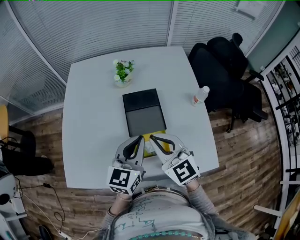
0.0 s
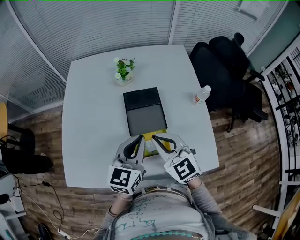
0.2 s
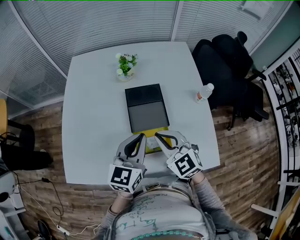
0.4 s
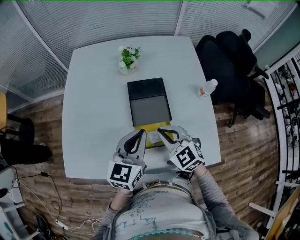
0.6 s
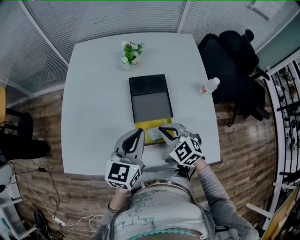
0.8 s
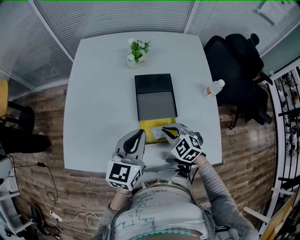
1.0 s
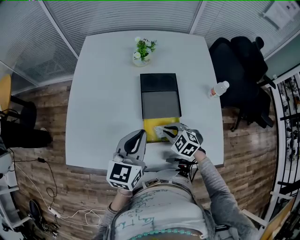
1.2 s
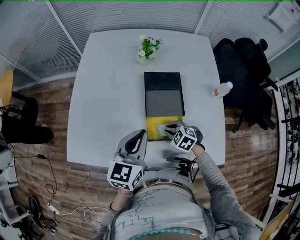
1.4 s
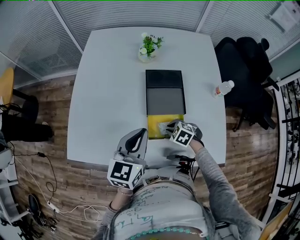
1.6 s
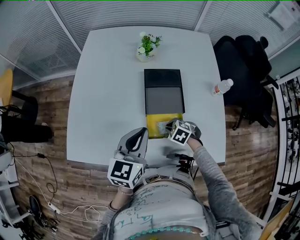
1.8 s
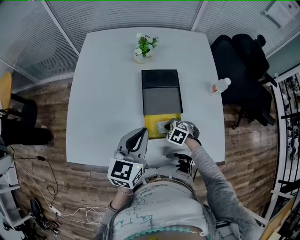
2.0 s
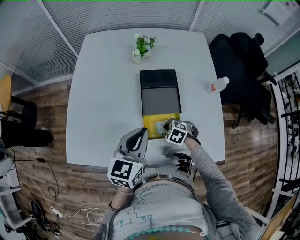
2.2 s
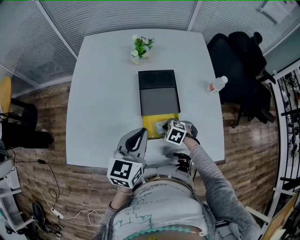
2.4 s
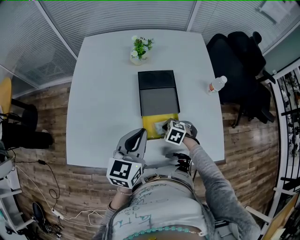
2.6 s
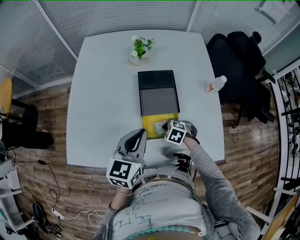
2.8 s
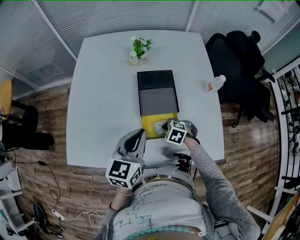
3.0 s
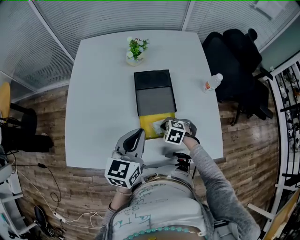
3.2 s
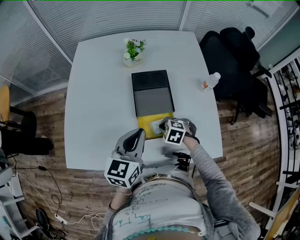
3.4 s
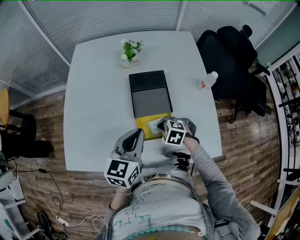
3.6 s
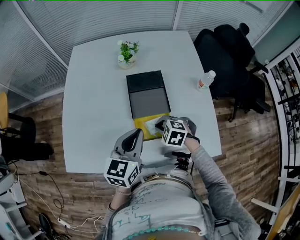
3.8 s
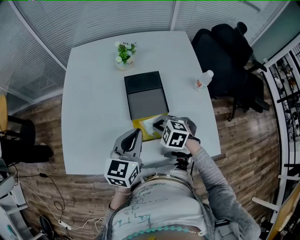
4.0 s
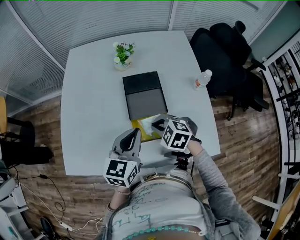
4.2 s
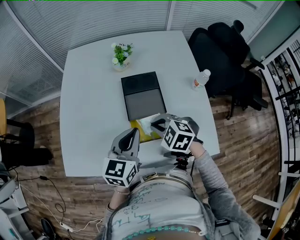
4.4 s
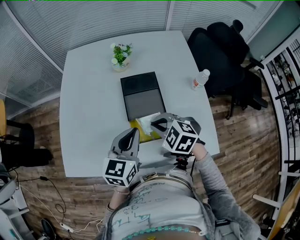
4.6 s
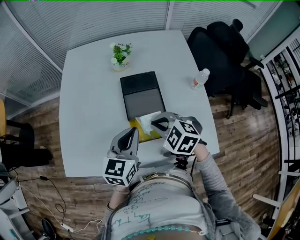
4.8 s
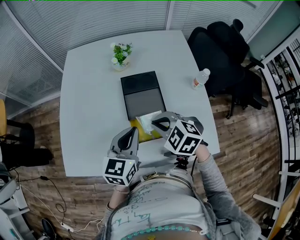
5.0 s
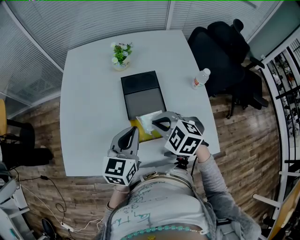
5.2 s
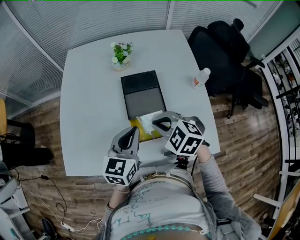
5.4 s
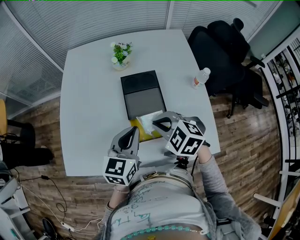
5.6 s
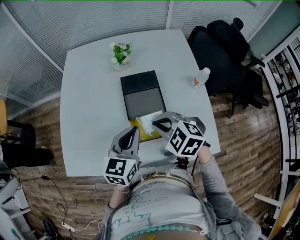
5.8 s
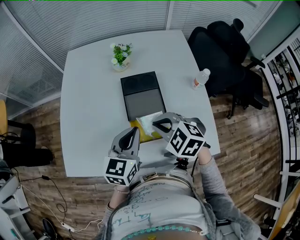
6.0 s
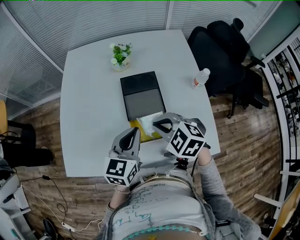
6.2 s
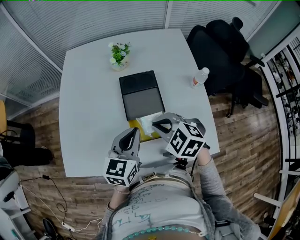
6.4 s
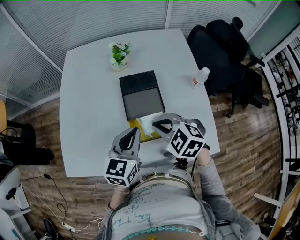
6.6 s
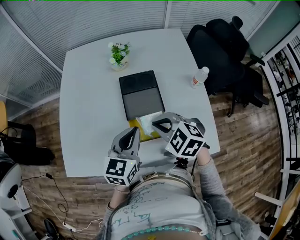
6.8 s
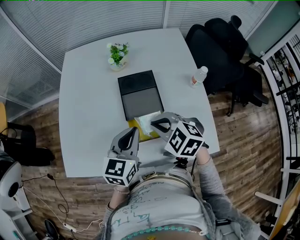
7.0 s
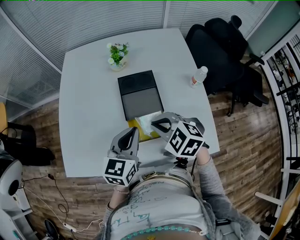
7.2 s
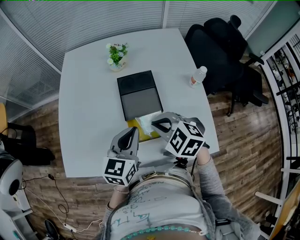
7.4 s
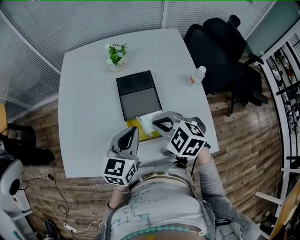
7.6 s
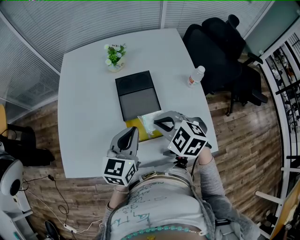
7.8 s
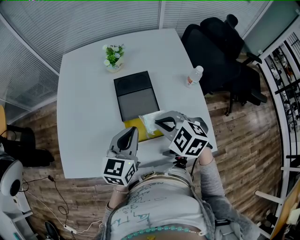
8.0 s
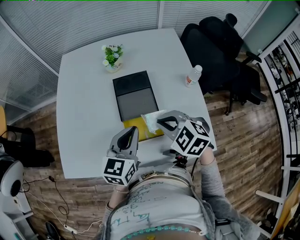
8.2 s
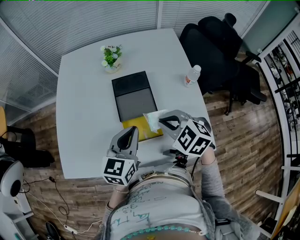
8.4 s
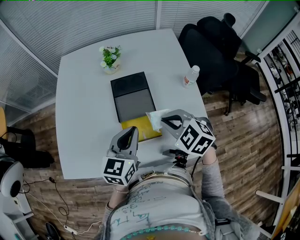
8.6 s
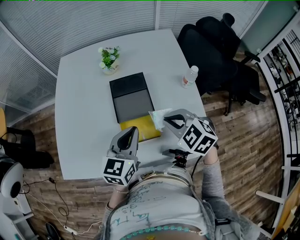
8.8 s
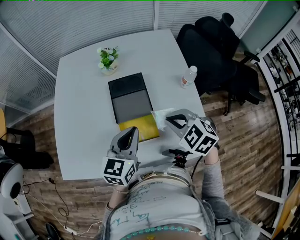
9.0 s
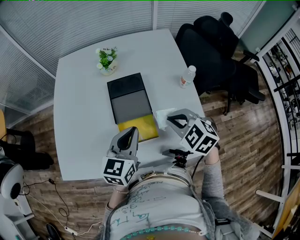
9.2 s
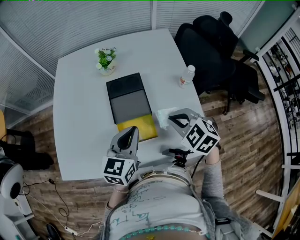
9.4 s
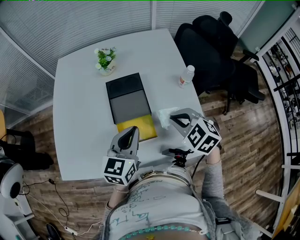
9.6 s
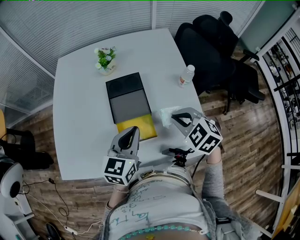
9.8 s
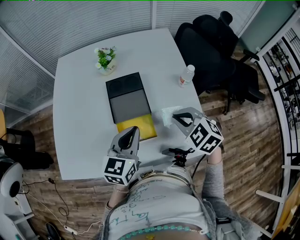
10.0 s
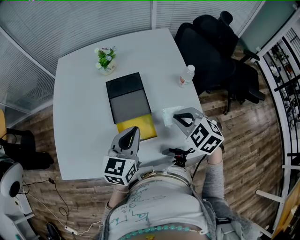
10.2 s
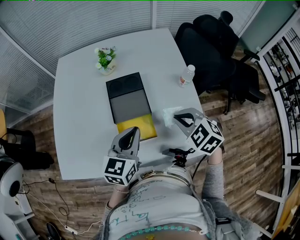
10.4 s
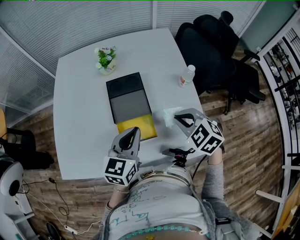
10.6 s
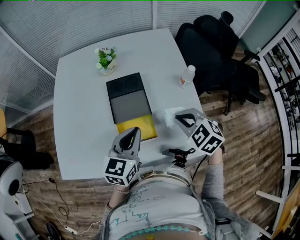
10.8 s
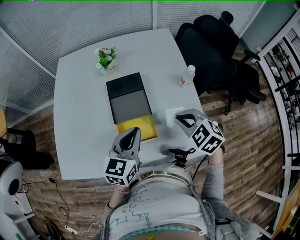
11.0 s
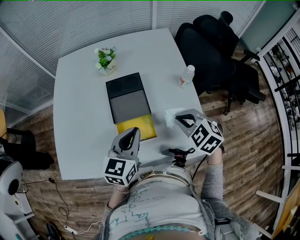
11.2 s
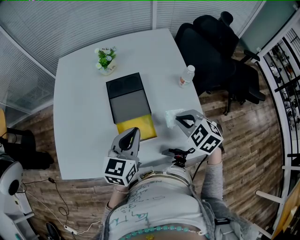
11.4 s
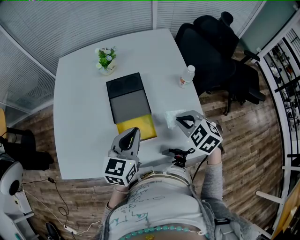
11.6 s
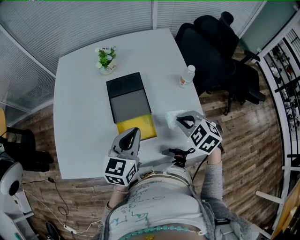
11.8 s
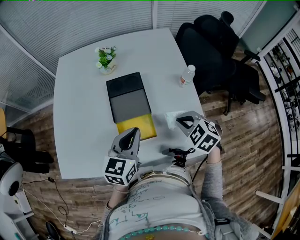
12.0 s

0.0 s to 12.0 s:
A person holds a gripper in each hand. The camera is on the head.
0.0 to 1.6 s: The right gripper is displaced downward by some 30 cm, and tips its fingers downward by approximately 50 degrees. The left gripper goes roughly 10 cm to the left.
1.6 to 3.0 s: The grippers stay close to where they were, moving slightly.
3.0 to 4.4 s: The right gripper goes roughly 15 cm upward.
4.4 to 6.0 s: The right gripper is displaced upward by about 5 cm.
6.0 to 7.6 s: The grippers move only a little.
7.6 to 9.0 s: The right gripper shifts some 10 cm to the right.
9.0 to 10.4 s: The grippers stay close to where they were, moving slightly.
10.4 to 12.0 s: The grippers make only small movements.

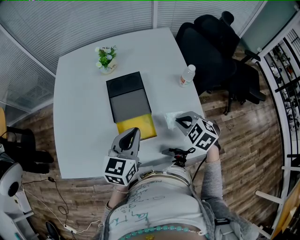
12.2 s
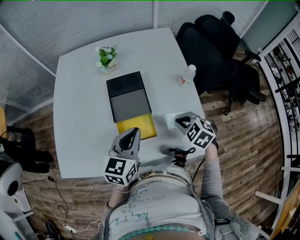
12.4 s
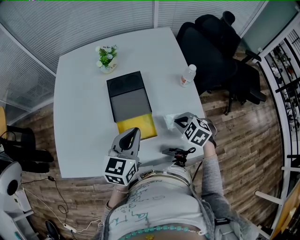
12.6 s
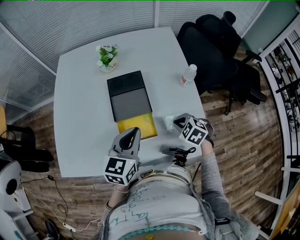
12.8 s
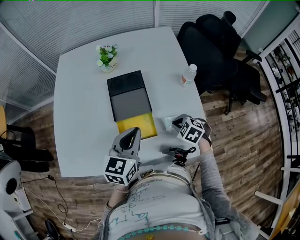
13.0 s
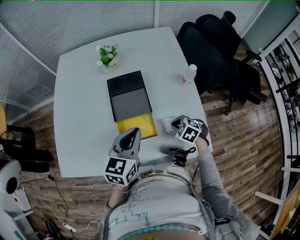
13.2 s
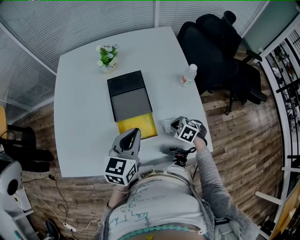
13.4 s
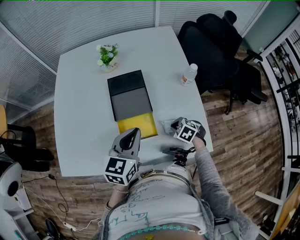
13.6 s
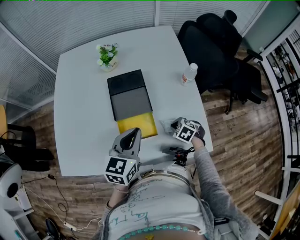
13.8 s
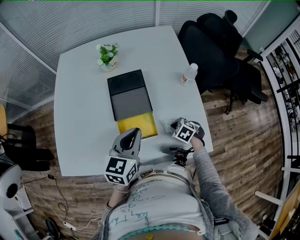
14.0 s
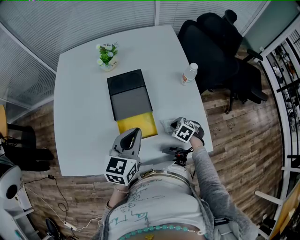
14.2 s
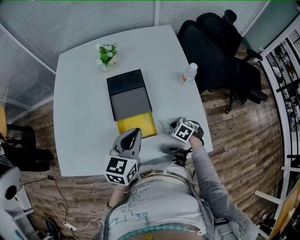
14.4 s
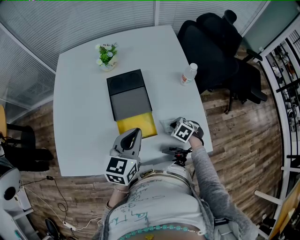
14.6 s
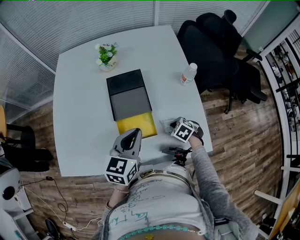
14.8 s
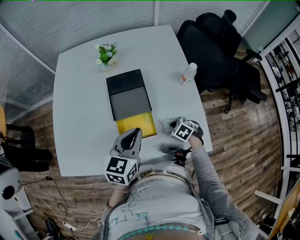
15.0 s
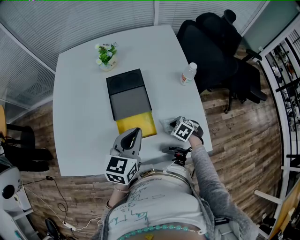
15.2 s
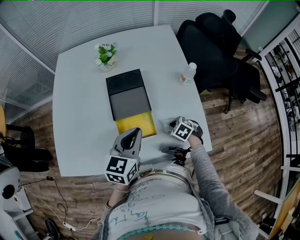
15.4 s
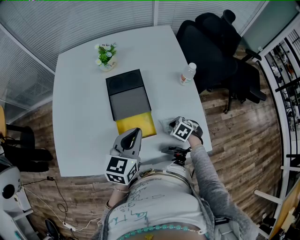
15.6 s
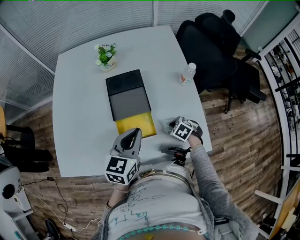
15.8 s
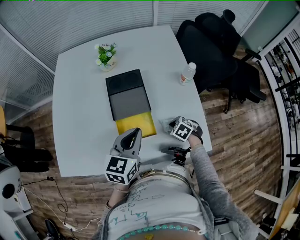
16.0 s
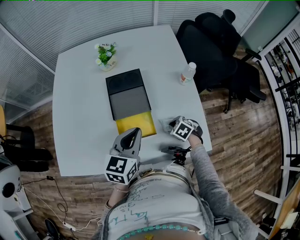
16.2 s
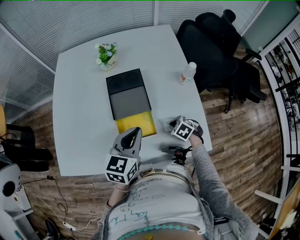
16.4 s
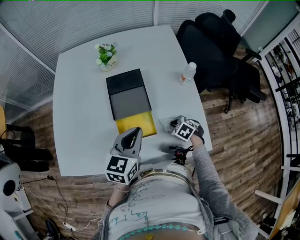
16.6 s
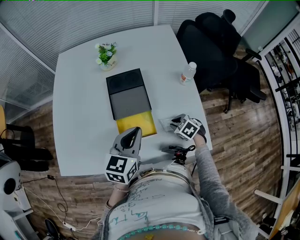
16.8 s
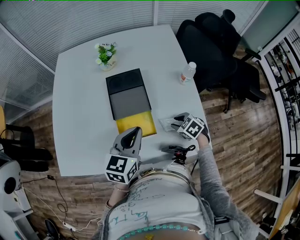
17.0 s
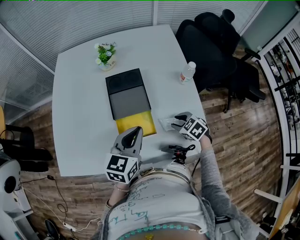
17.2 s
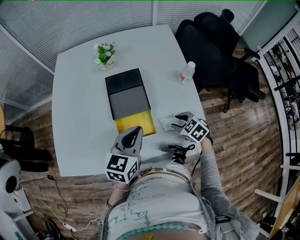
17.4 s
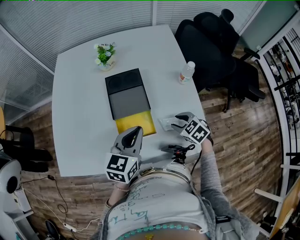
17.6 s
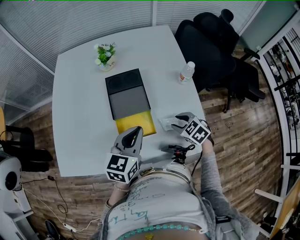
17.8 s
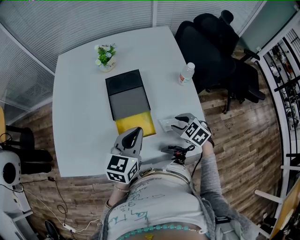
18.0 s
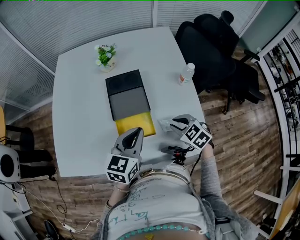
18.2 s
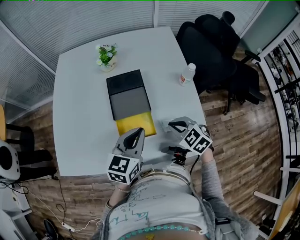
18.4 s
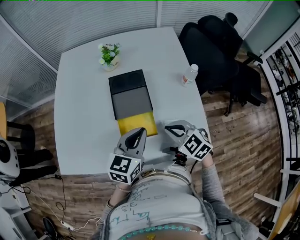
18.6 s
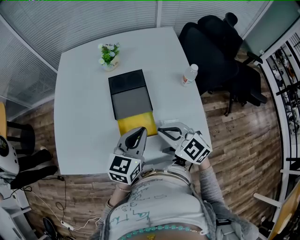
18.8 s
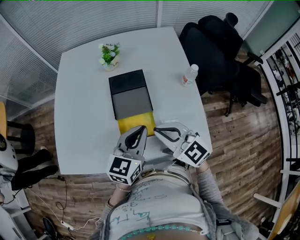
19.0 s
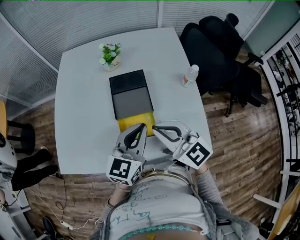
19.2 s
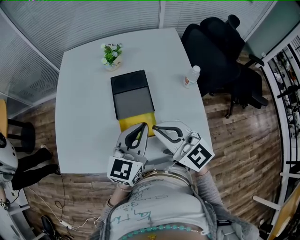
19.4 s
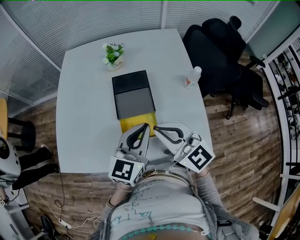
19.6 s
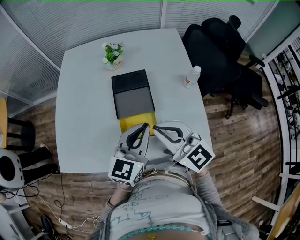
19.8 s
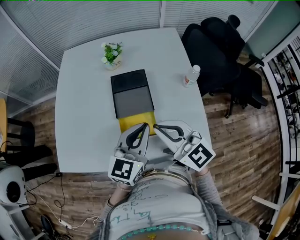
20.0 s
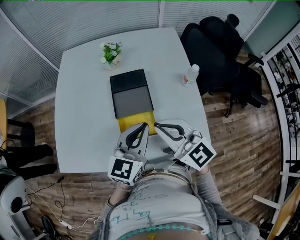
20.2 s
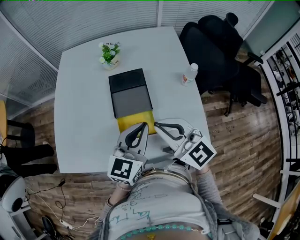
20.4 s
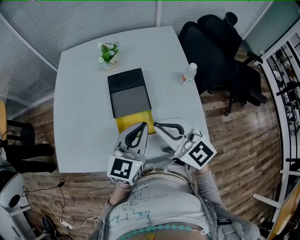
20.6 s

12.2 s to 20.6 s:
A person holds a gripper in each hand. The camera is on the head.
12.2 to 13.6 s: The right gripper shifts about 15 cm downward.
13.6 to 15.0 s: The grippers stay close to where they were, moving slightly.
15.0 to 16.4 s: The two grippers keep their place.
16.4 to 17.8 s: The right gripper is displaced upward by roughly 10 cm, and opens its fingers.
17.8 to 19.2 s: The right gripper shifts roughly 25 cm upward and to the left, tilts its fingers roughly 50 degrees upward, and closes up.
19.2 to 20.6 s: The grippers stay close to where they were, moving slightly.

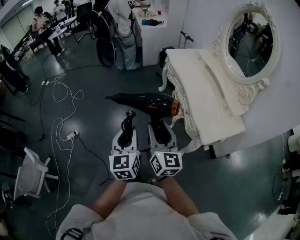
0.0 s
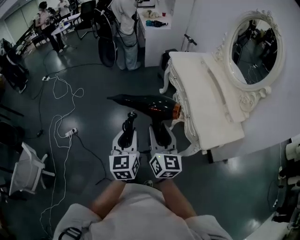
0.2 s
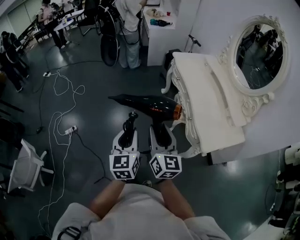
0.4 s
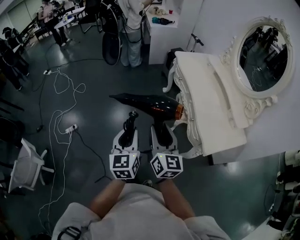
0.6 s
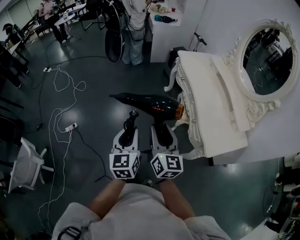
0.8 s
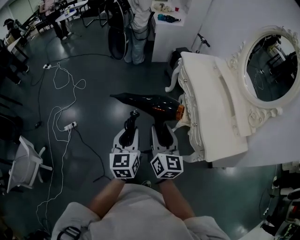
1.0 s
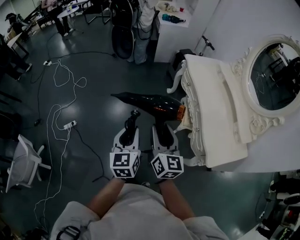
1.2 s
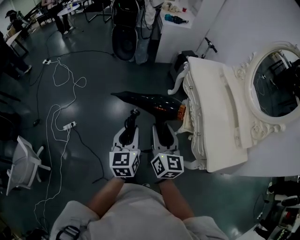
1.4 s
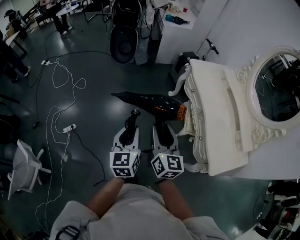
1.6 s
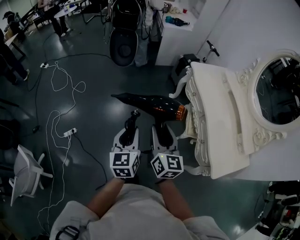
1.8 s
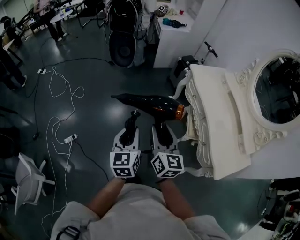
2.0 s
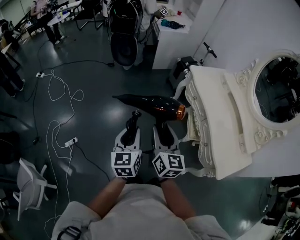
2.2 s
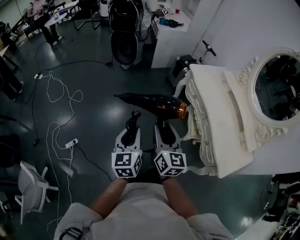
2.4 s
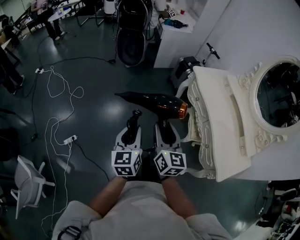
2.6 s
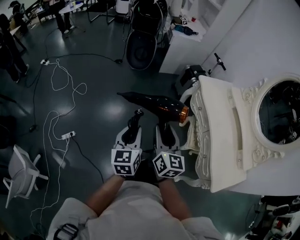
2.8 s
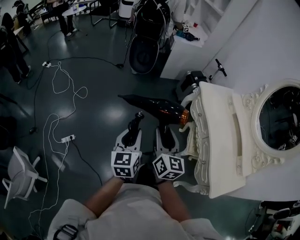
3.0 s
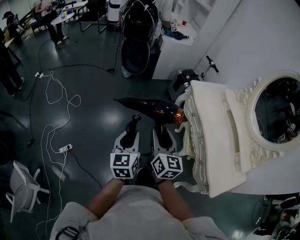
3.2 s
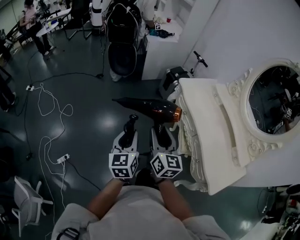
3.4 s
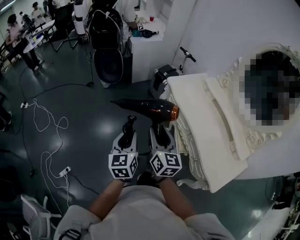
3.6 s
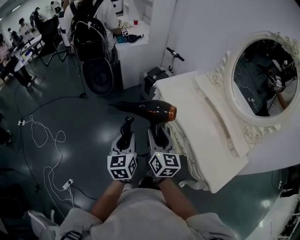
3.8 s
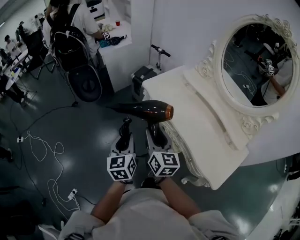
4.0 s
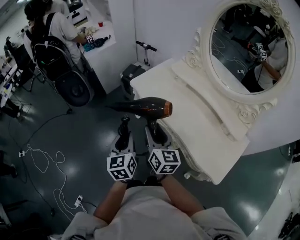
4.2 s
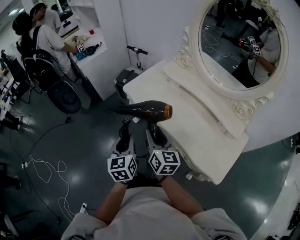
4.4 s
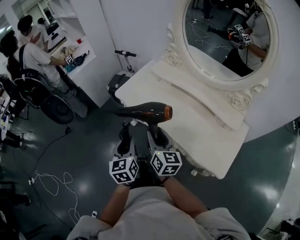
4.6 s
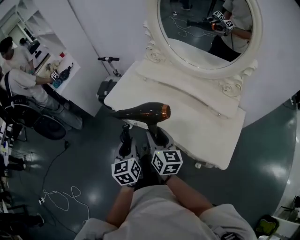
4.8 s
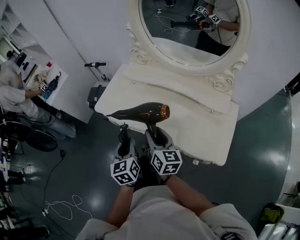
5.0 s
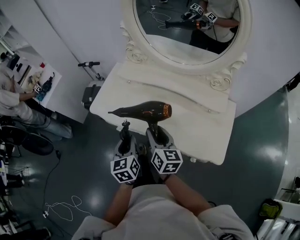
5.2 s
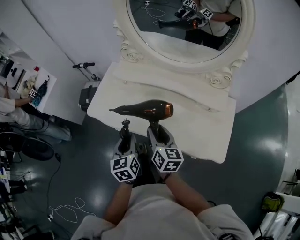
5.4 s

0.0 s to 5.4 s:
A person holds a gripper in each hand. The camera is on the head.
0.0 to 1.4 s: The grippers both shift forward and to the left by some 20 cm.
1.4 to 2.8 s: The two grippers go about 20 cm forward and to the left.
2.8 to 4.0 s: The grippers both shift to the right and forward by approximately 30 cm. The left gripper swivels approximately 20 degrees. The right gripper turns by about 20 degrees.
4.0 to 5.4 s: The left gripper moves roughly 30 cm, and swivels approximately 30 degrees. Meanwhile the right gripper moves about 30 cm, and rotates about 40 degrees.
